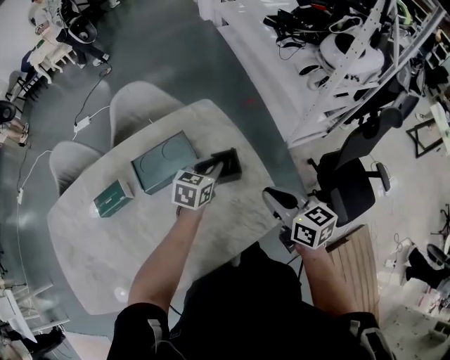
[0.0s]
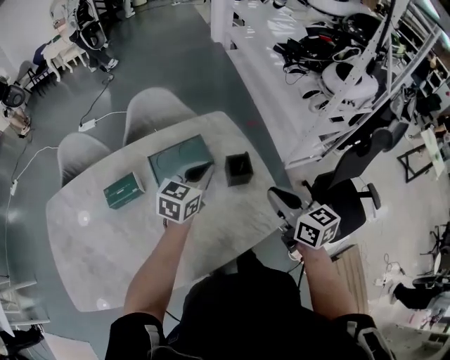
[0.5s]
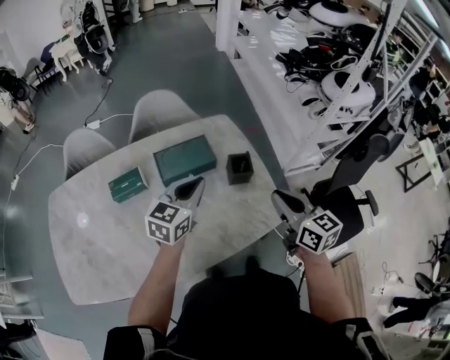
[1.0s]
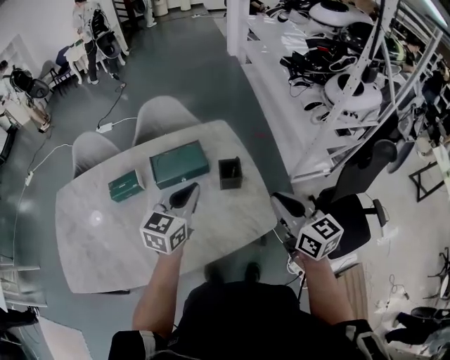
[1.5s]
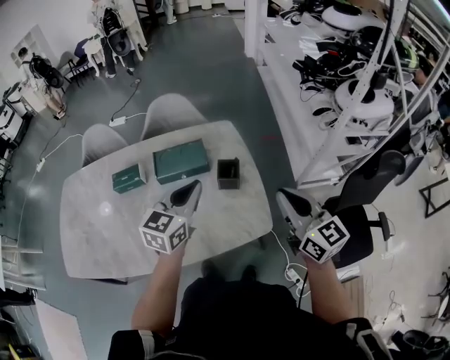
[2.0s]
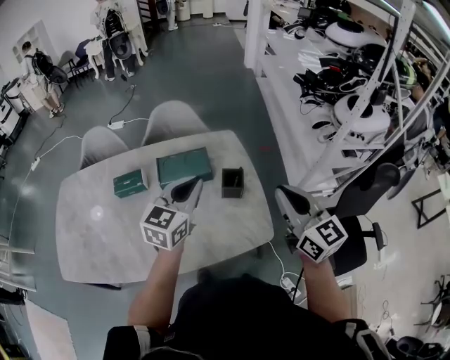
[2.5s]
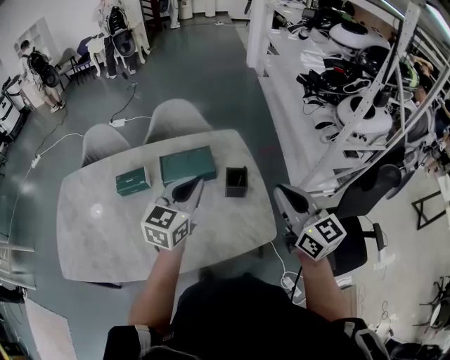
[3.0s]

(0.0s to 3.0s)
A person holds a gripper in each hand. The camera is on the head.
0.0s - 1.5s: The left gripper heads upward and backward, covering approximately 25 cm, and swivels some 20 degrees. Meanwhile the right gripper heads upward and backward, covering about 15 cm.
1.5s - 3.0s: The right gripper is displaced upward by roughly 5 cm.

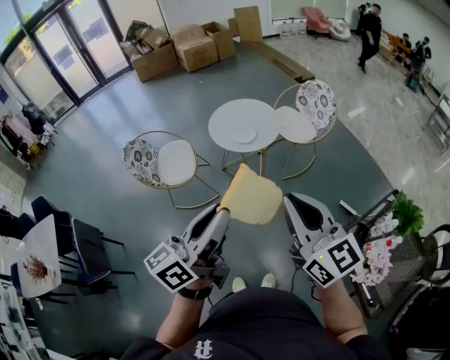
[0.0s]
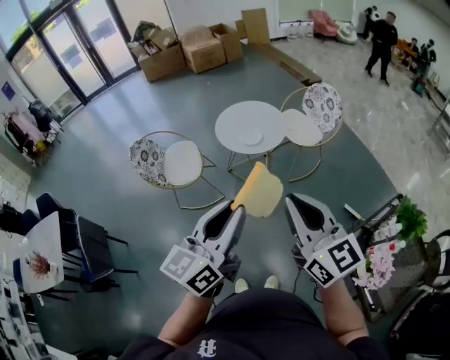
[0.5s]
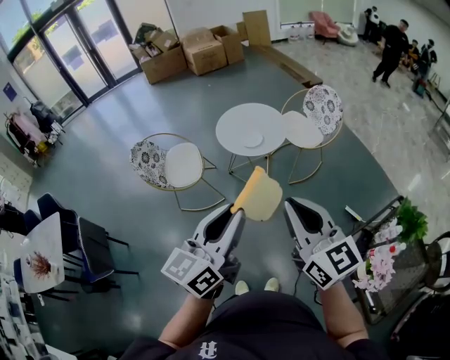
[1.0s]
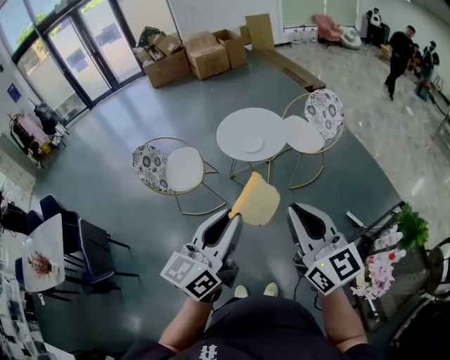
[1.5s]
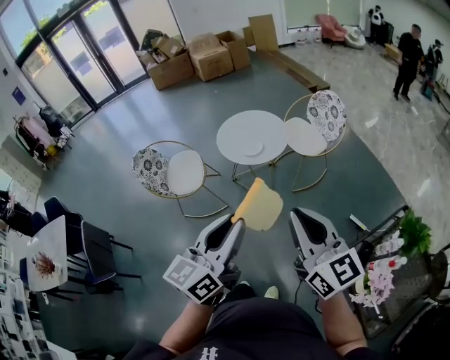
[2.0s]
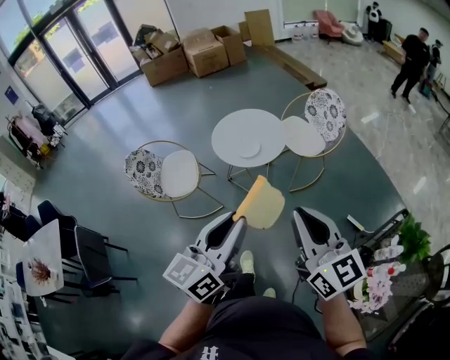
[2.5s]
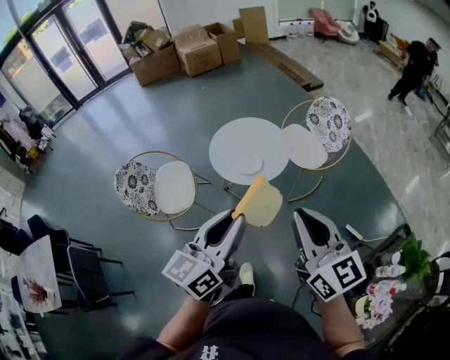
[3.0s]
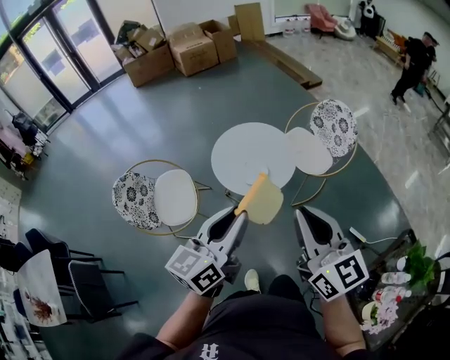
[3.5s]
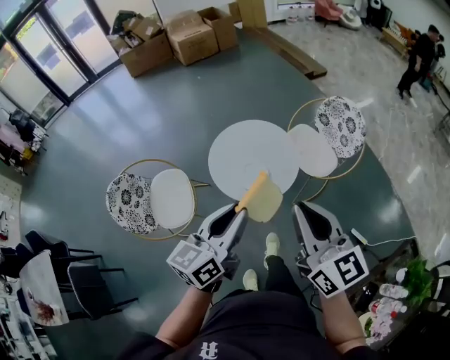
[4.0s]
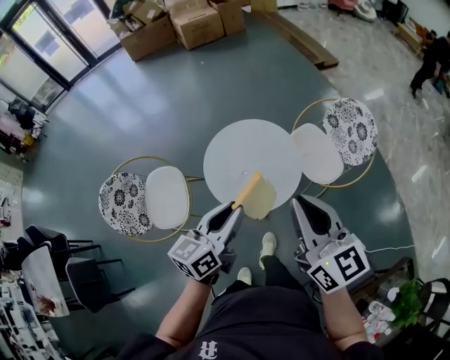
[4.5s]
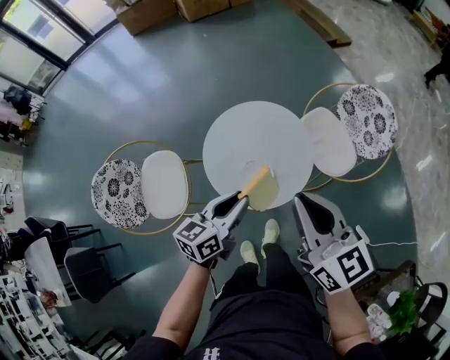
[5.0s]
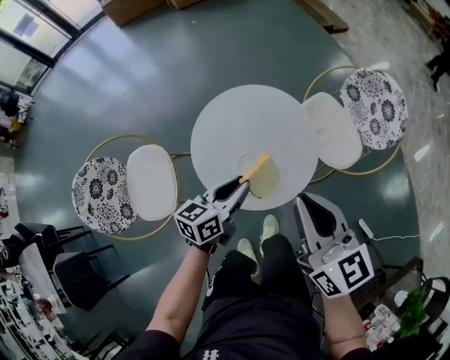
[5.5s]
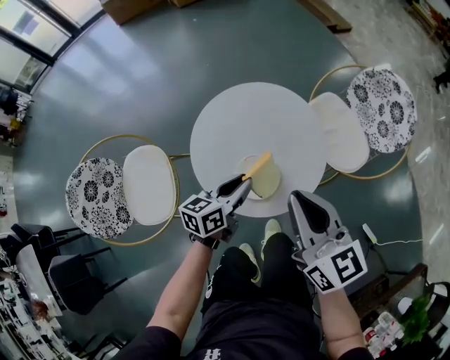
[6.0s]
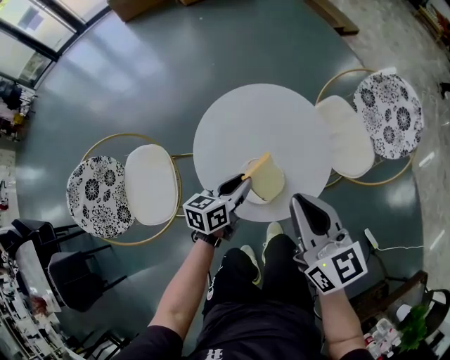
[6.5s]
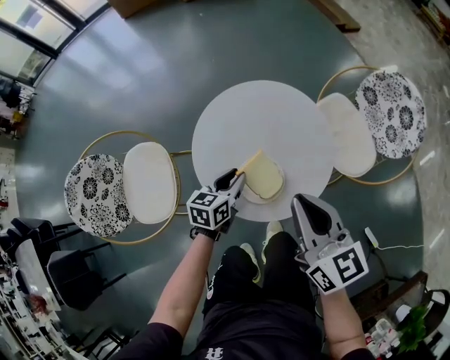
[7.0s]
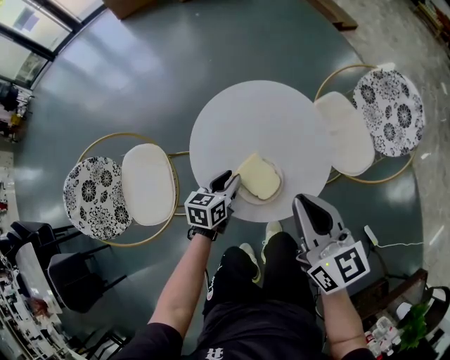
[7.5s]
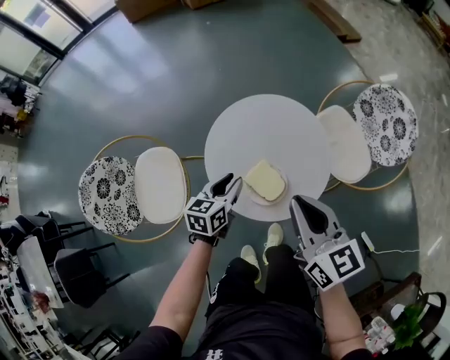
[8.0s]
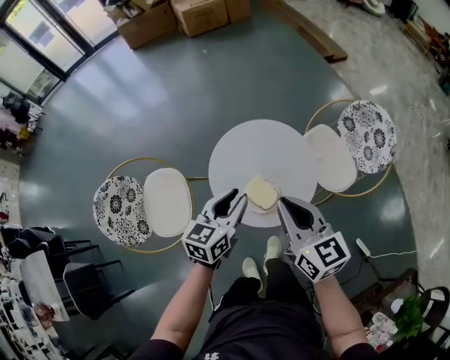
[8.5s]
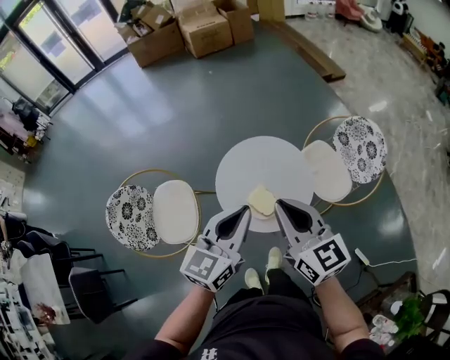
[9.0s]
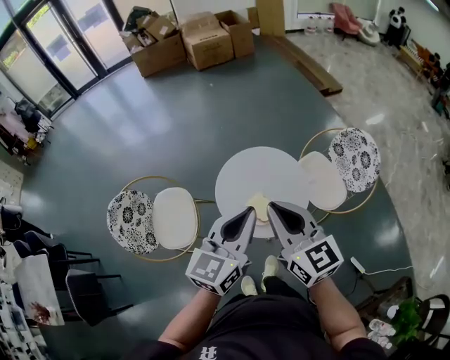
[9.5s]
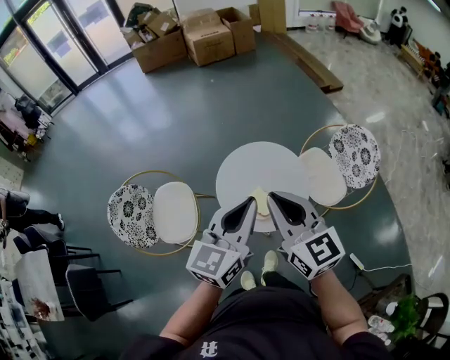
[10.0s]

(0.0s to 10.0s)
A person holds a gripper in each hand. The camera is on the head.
0.0s - 2.0s: Both grippers move to the right, about 5 cm. The left gripper rotates approximately 20 degrees.
2.0s - 4.0s: The grippers both shift forward by about 40 cm.
4.0s - 6.0s: Both grippers move downward and forward, roughly 40 cm. The left gripper swivels about 20 degrees.
6.0s - 8.0s: The left gripper travels to the left by approximately 5 cm, and goes downward and returns, roughly 10 cm each way.
8.0s - 10.0s: The left gripper goes approximately 40 cm upward, rotates some 30 degrees, and closes up. The right gripper is displaced upward by some 20 cm.

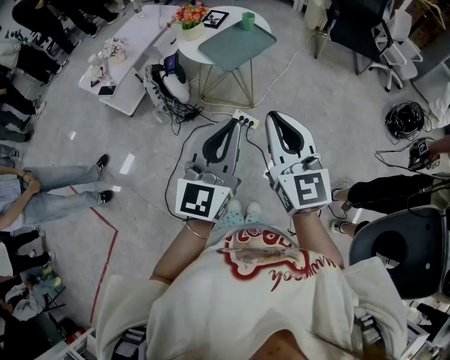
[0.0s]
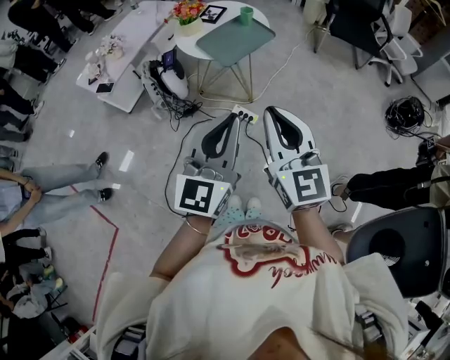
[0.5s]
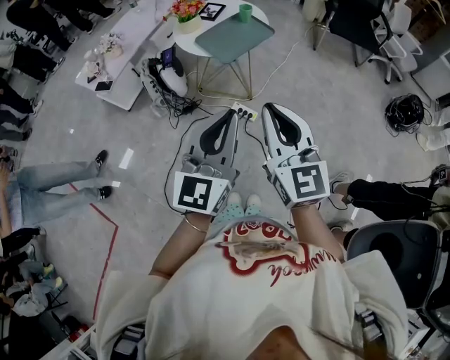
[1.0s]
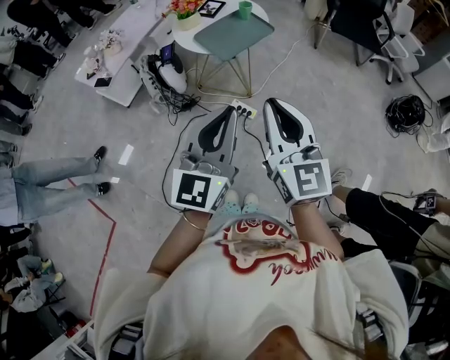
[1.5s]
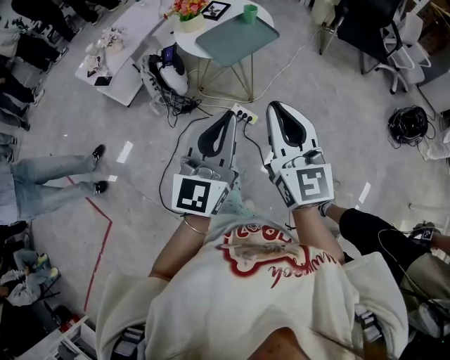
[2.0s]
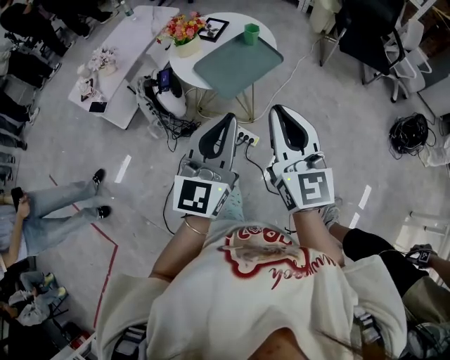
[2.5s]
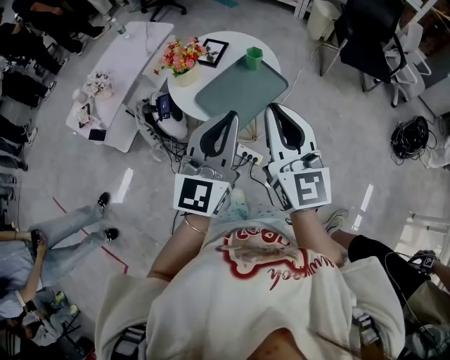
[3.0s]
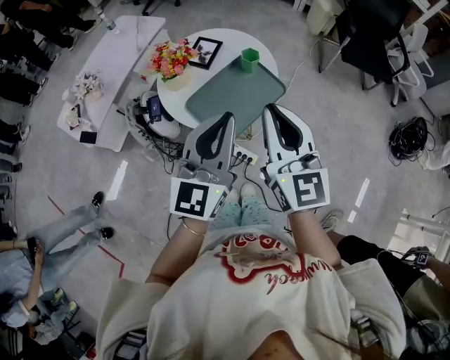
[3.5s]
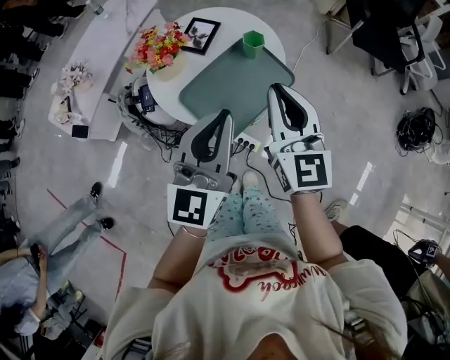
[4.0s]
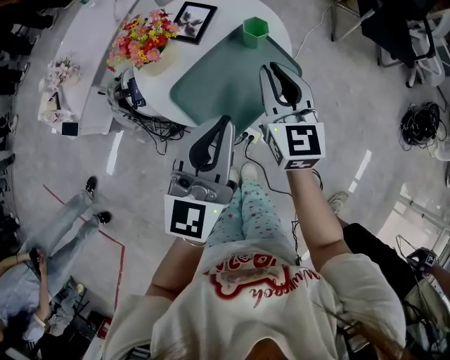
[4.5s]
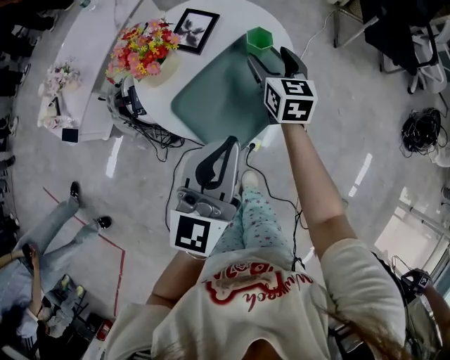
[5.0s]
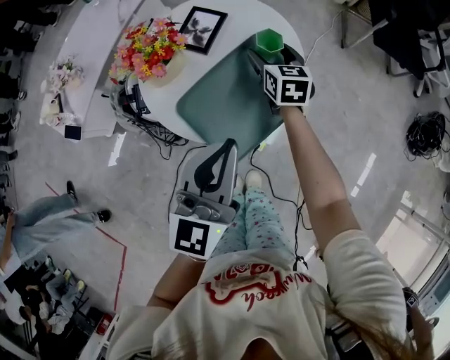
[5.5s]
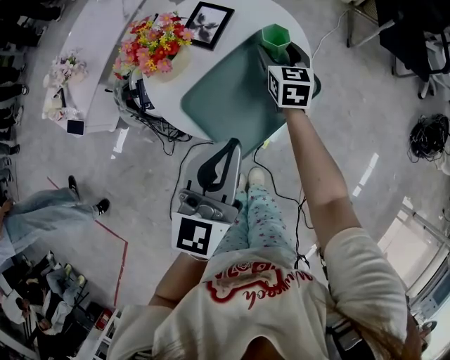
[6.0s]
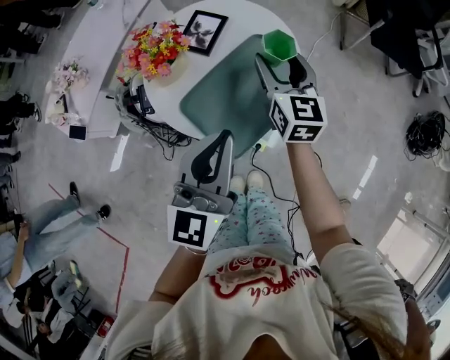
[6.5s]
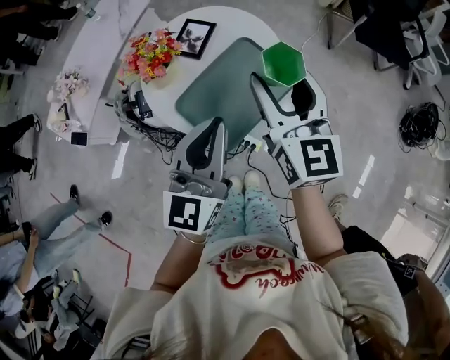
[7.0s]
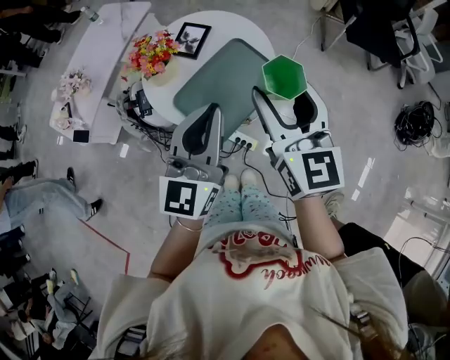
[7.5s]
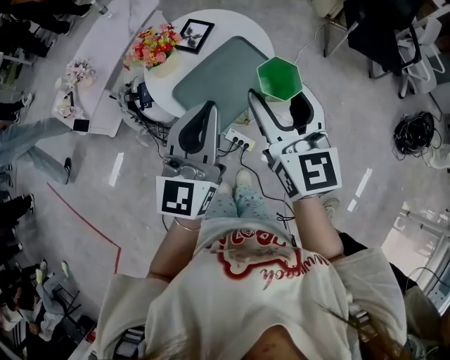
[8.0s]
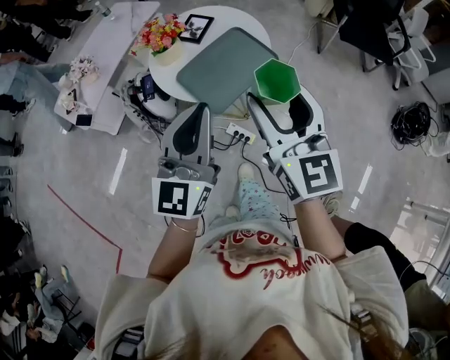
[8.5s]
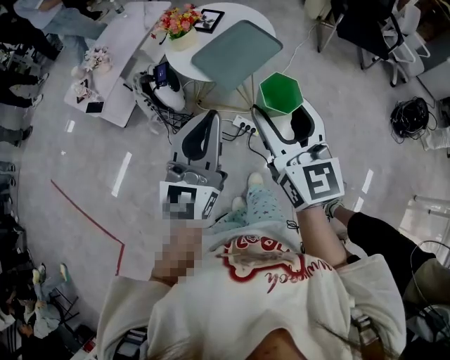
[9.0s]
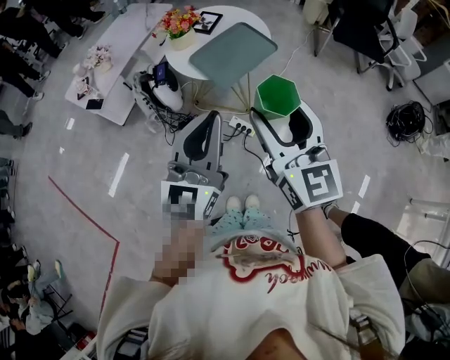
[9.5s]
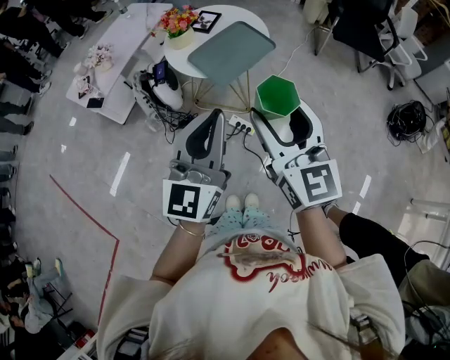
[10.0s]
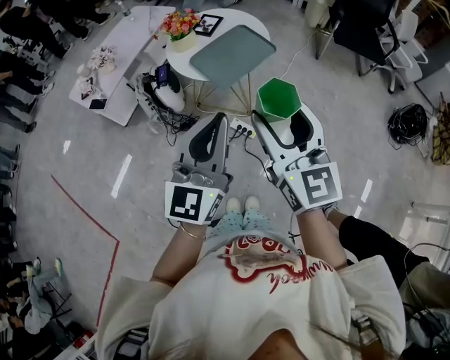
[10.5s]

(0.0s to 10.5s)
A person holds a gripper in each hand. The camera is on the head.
0.0s - 2.0s: The right gripper shifts by approximately 5 cm.
2.0s - 4.0s: Both grippers move forward, roughly 40 cm.
4.0s - 6.5s: The right gripper travels forward and downward by roughly 20 cm, and opens its fingers. The left gripper moves downward, approximately 5 cm.
6.5s - 8.5s: The left gripper travels backward and upward by some 15 cm; the right gripper heads backward and upward, covering about 35 cm.
8.5s - 10.5s: The grippers both shift backward by approximately 20 cm.

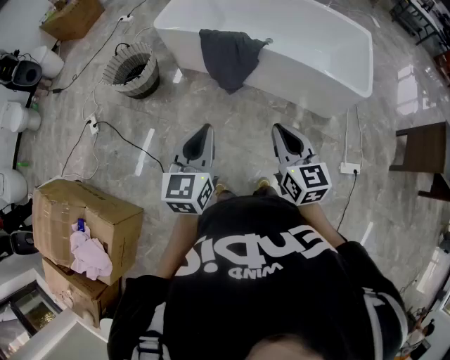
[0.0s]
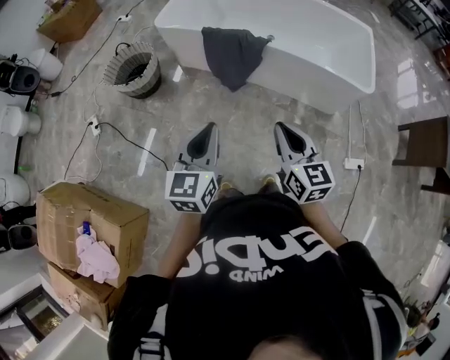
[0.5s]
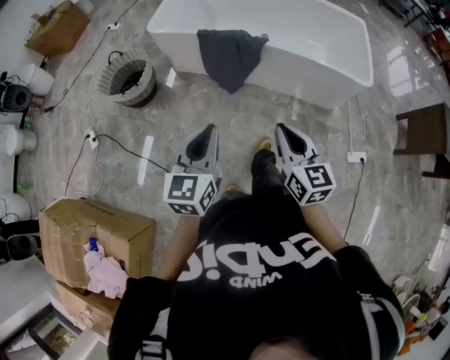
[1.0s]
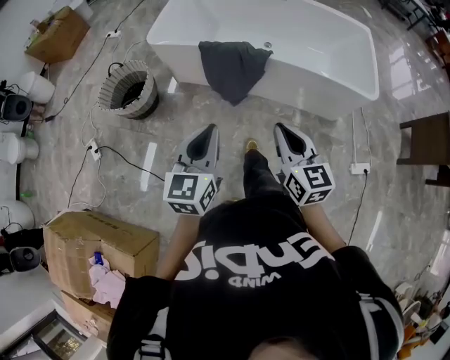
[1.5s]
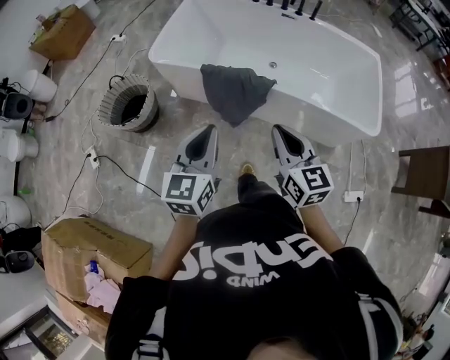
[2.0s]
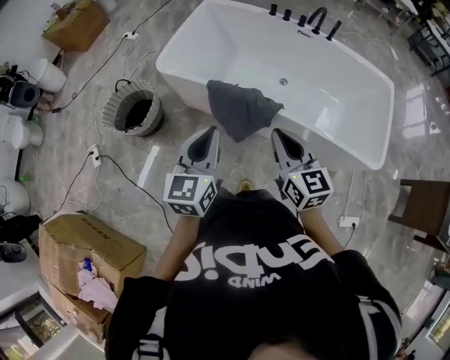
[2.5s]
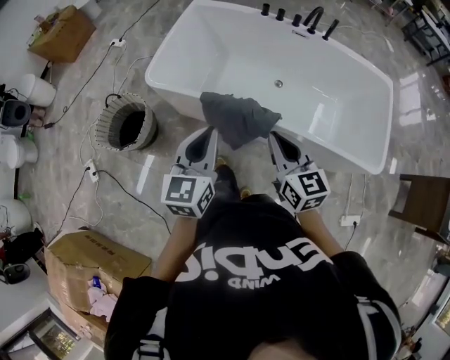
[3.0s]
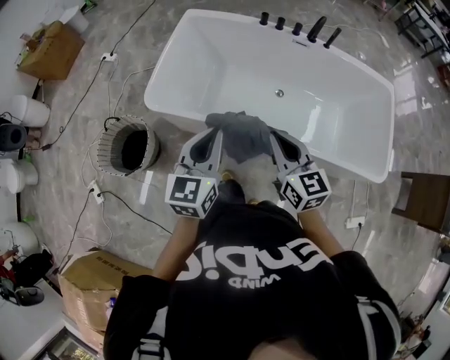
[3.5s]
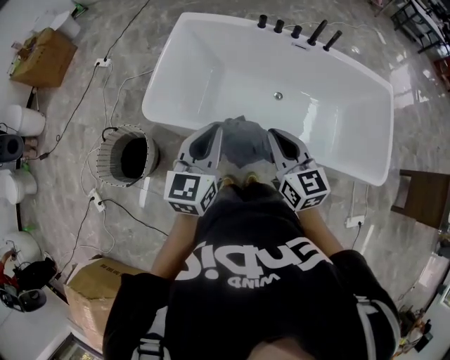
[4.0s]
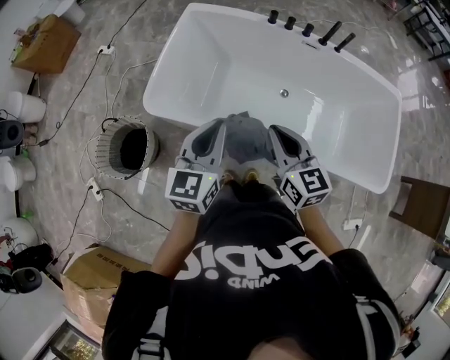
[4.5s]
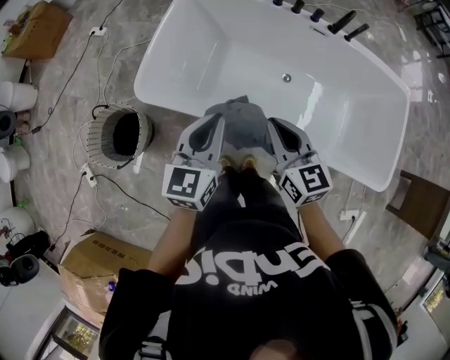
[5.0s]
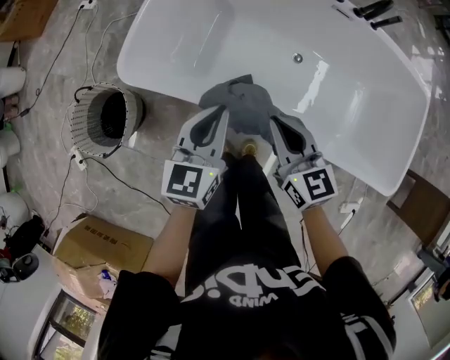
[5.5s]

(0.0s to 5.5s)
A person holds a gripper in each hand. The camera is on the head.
0.0s - 2.0s: Both grippers travel together forward, some 25 cm.
2.0s - 3.5s: Both grippers move forward, about 30 cm.
3.5s - 5.5s: Both grippers move downward and forward, approximately 20 cm.
